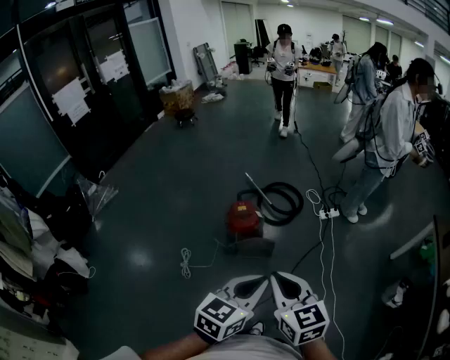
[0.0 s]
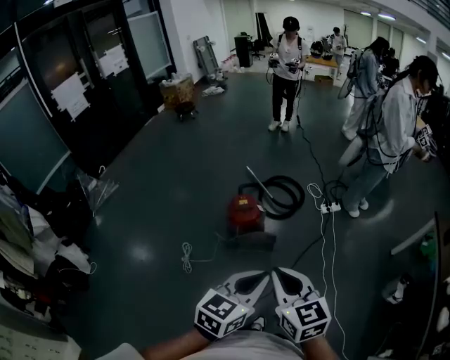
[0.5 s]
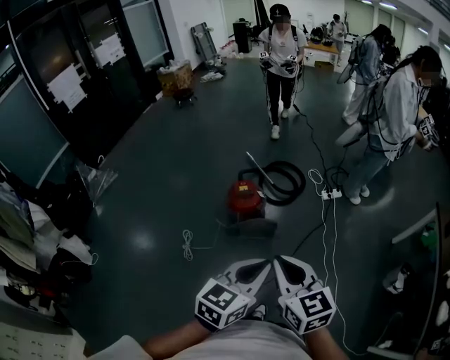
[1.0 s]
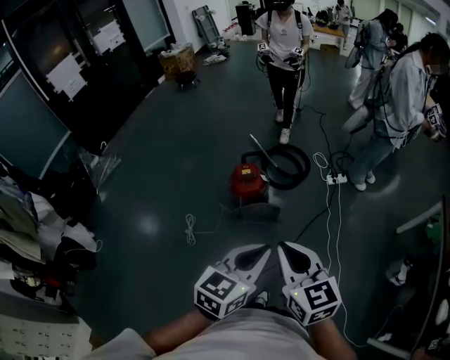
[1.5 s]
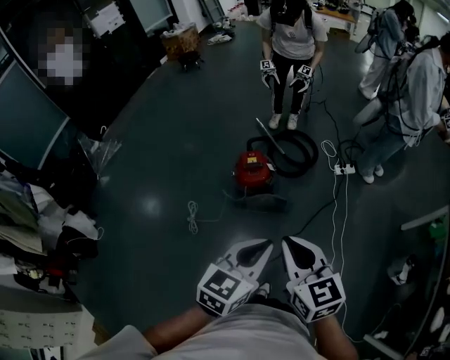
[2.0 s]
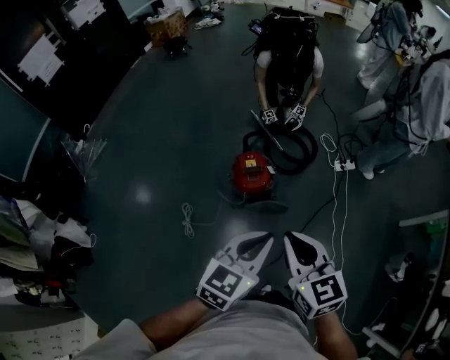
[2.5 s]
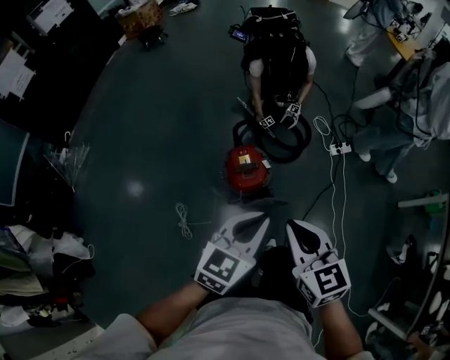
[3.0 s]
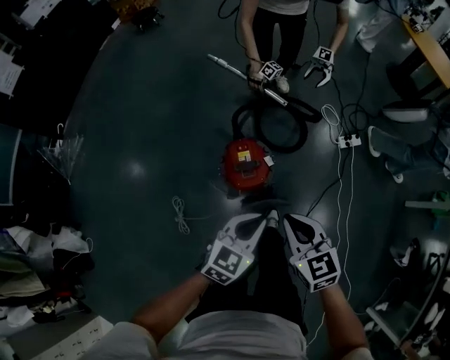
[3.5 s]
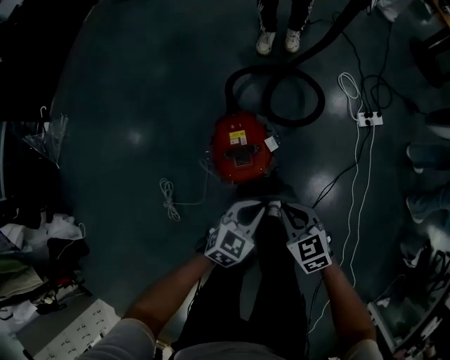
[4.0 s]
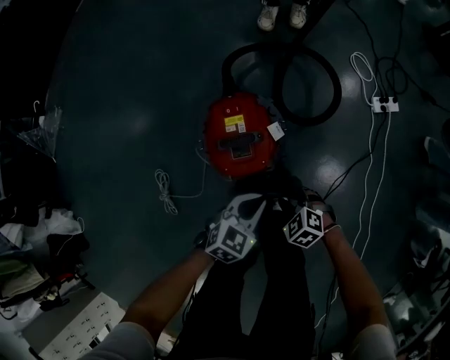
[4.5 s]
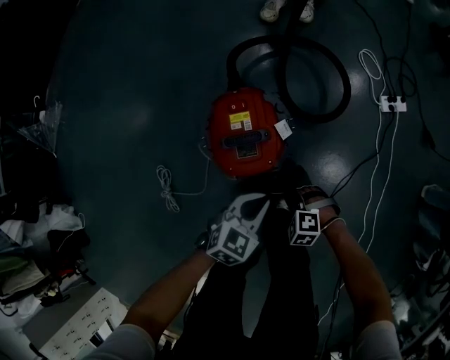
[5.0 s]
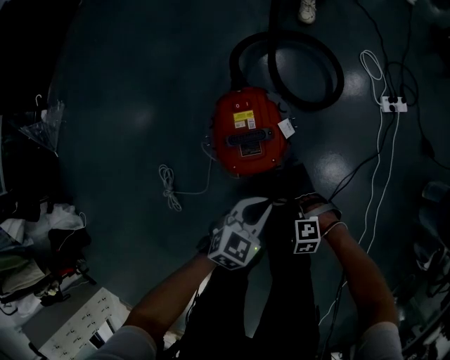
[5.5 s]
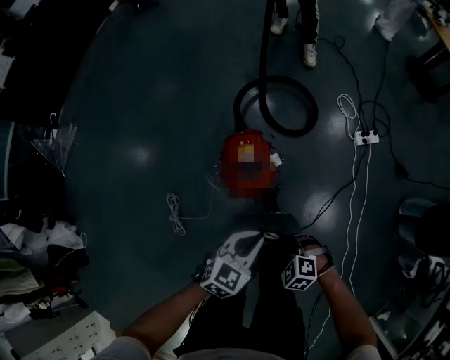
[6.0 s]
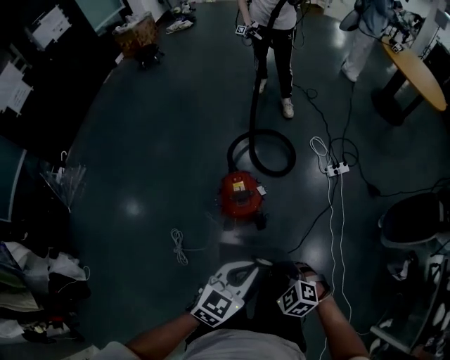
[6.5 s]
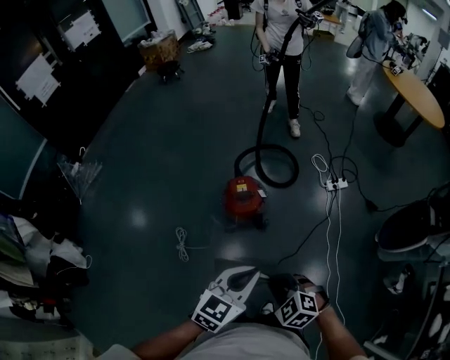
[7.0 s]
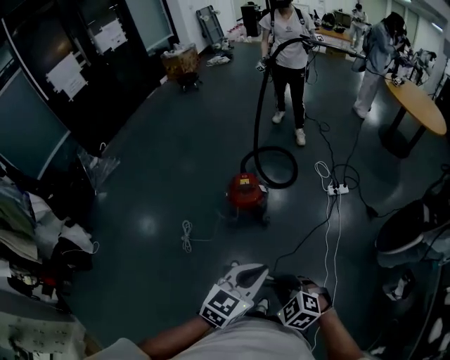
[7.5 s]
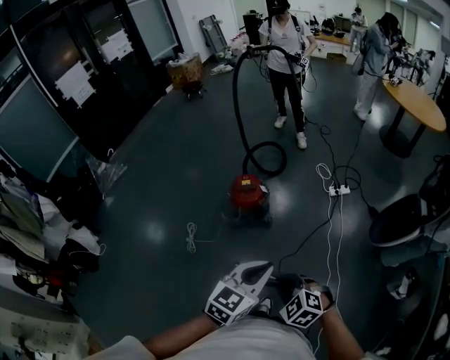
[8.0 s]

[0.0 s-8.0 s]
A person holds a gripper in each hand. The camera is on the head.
0.0 to 2.0 s: Both grippers move forward, roughly 10 cm.
2.0 to 4.0 s: Both grippers travel together downward and forward, approximately 60 cm. The right gripper turns by approximately 30 degrees. Meanwhile the left gripper changes its angle by approximately 30 degrees.
4.0 to 6.0 s: The left gripper goes some 10 cm upward. The right gripper moves some 25 cm downward and comes back, and changes its angle by about 40 degrees.
6.0 to 8.0 s: The left gripper is displaced backward and upward by some 60 cm, and rotates some 20 degrees. The right gripper shifts about 50 cm upward and backward.

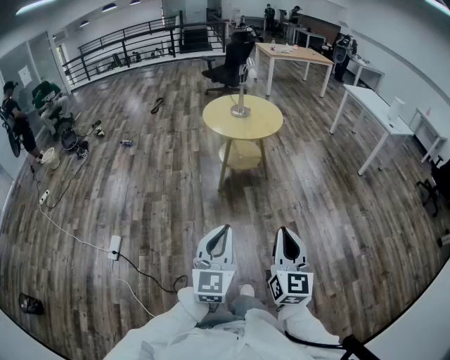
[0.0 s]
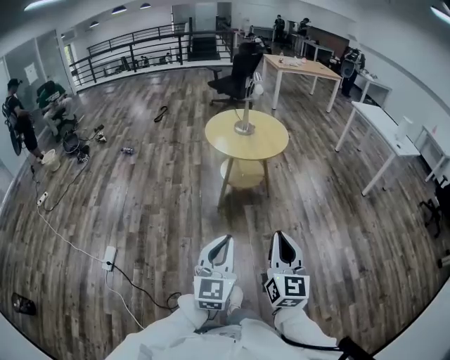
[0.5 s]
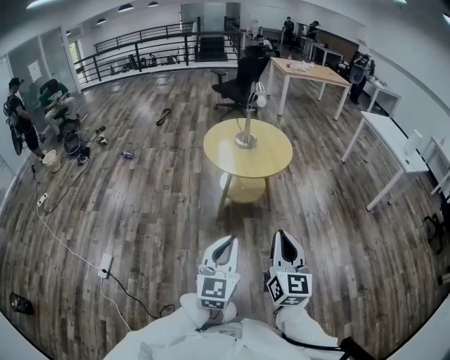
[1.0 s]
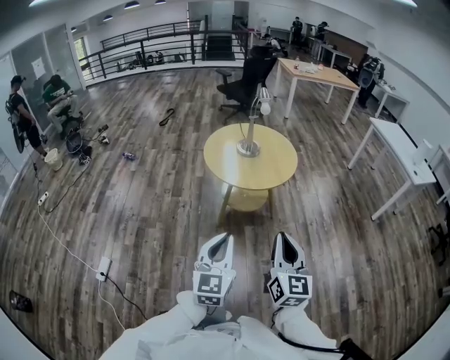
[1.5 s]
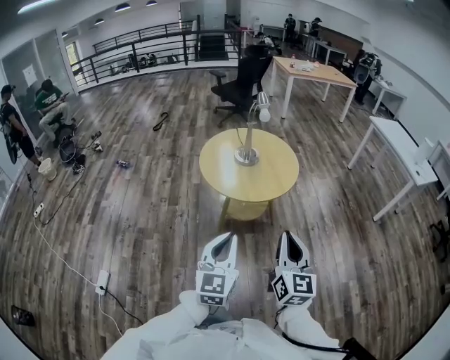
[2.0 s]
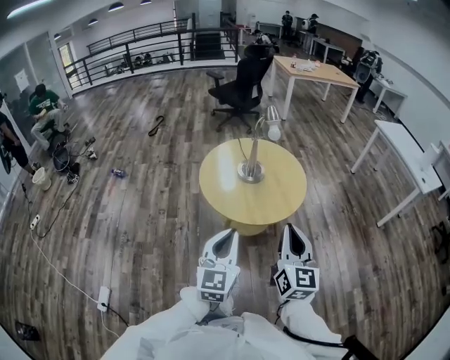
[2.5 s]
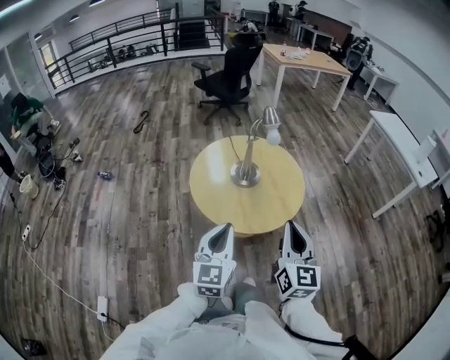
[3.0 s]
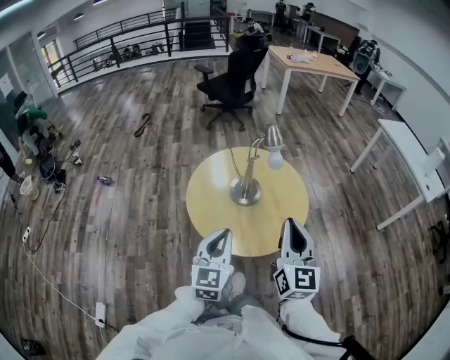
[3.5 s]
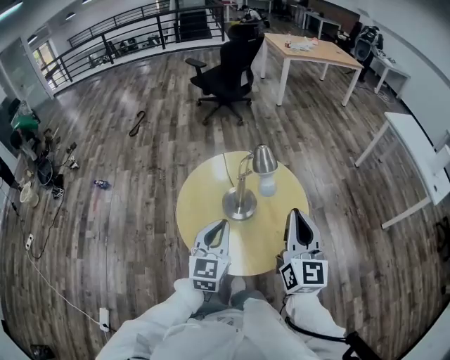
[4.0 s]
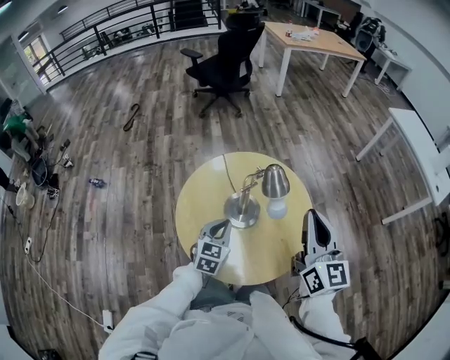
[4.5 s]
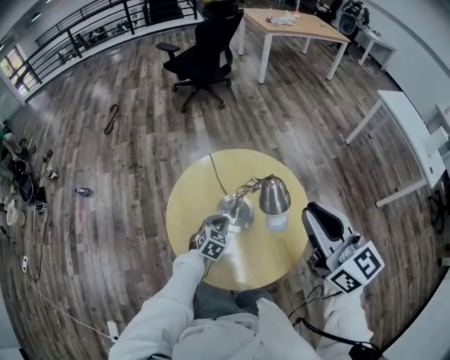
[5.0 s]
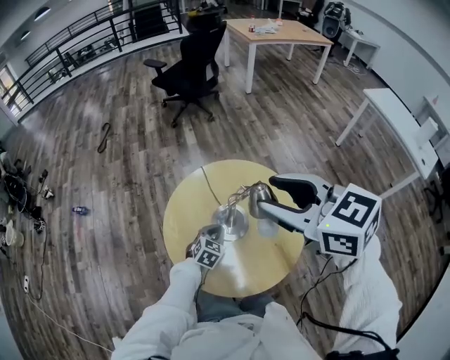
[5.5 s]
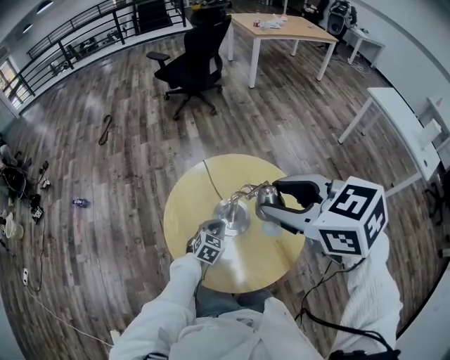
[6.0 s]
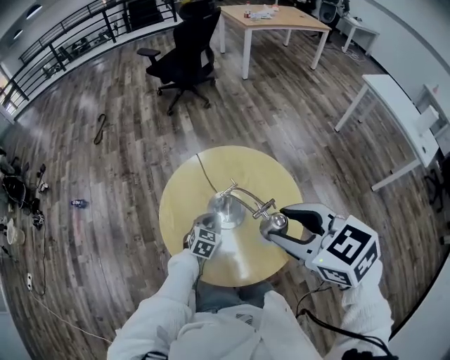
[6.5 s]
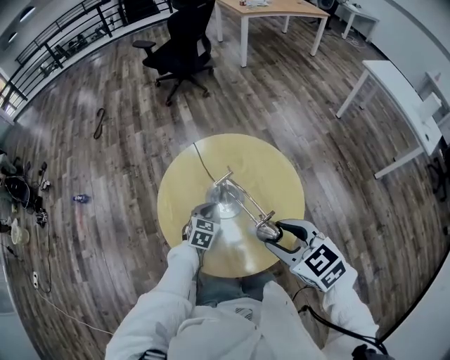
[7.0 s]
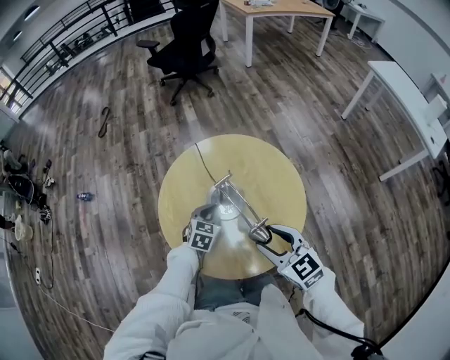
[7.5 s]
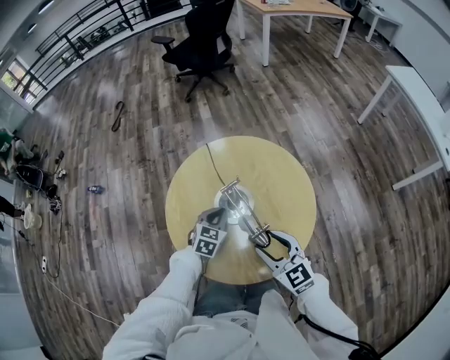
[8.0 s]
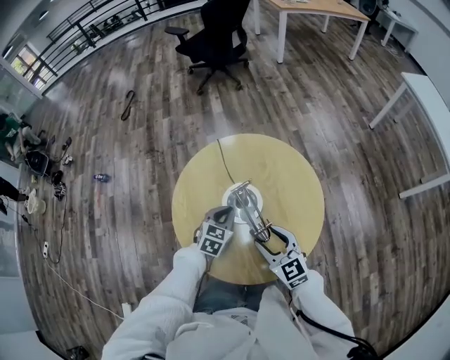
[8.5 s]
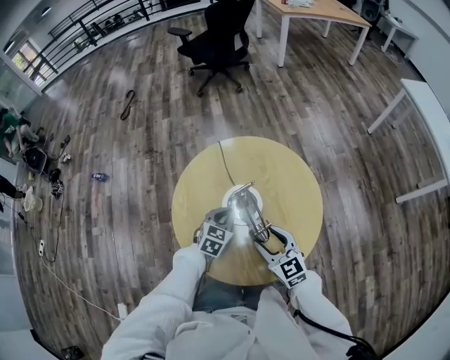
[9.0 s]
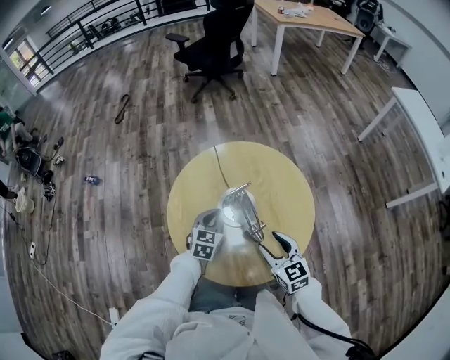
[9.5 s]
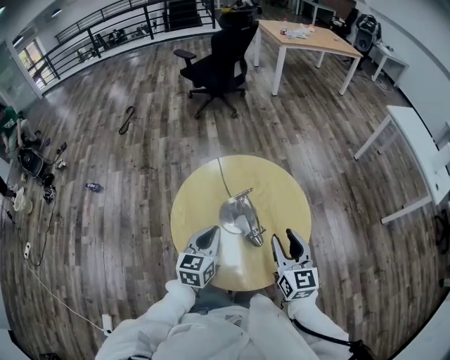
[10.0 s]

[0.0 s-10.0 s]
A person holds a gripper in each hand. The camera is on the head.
0.0 to 2.0 s: The pair of grippers is taken forward, about 50 cm.
2.0 to 4.0 s: The pair of grippers is taken forward, roughly 50 cm.
4.0 to 6.0 s: The left gripper moves downward and forward, roughly 30 cm, and points its fingers about 30 degrees further downward, while the right gripper moves forward, to the left and upward, about 15 cm, points its fingers roughly 40 degrees further downward, and opens its fingers.
6.0 to 8.0 s: The right gripper travels downward by approximately 30 cm.
8.0 to 10.0 s: The right gripper goes about 10 cm upward and to the right, and turns by some 30 degrees. Meanwhile the left gripper is displaced upward and backward by about 15 cm, and swivels roughly 30 degrees.

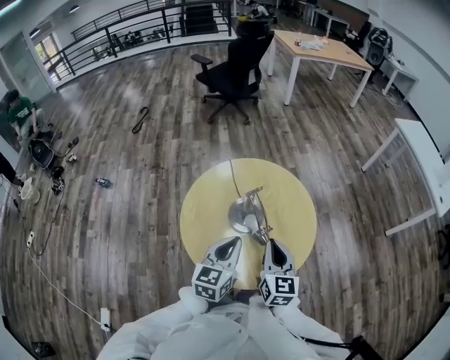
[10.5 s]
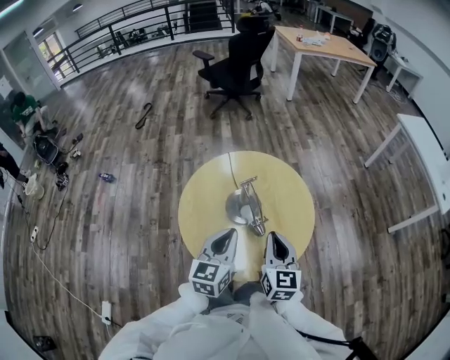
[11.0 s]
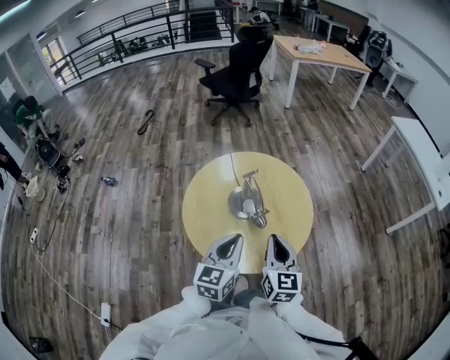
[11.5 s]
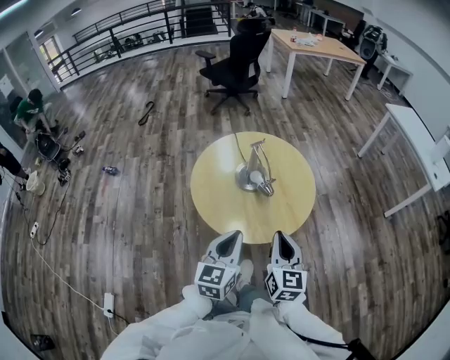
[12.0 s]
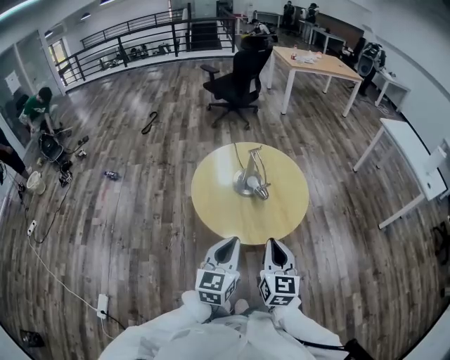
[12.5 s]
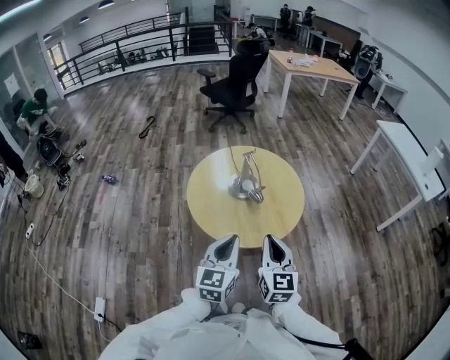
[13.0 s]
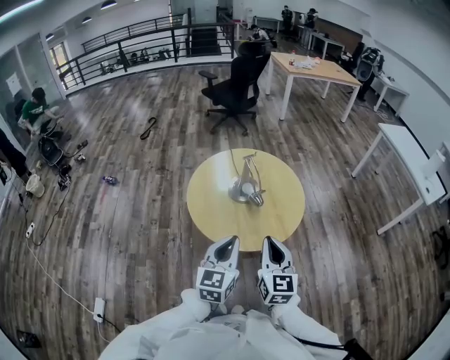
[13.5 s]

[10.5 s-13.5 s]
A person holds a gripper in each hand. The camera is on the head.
10.5 to 12.0 s: Both grippers travel together backward, approximately 20 cm.
12.0 to 13.5 s: The grippers make only small movements.

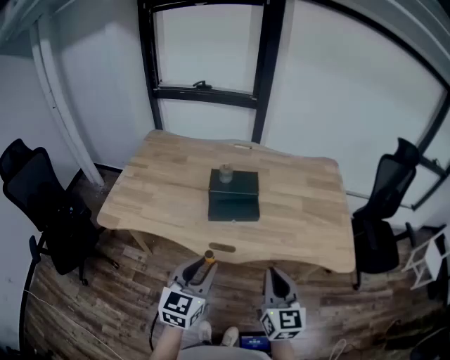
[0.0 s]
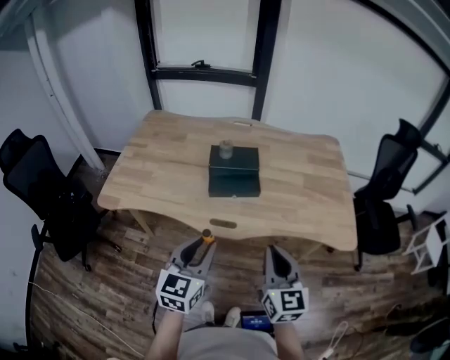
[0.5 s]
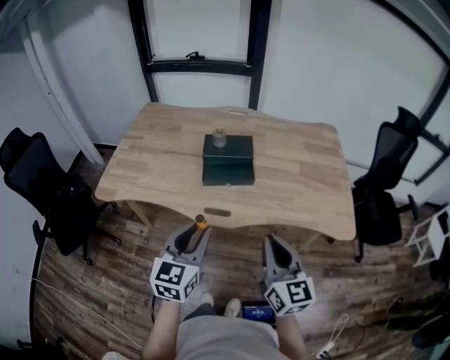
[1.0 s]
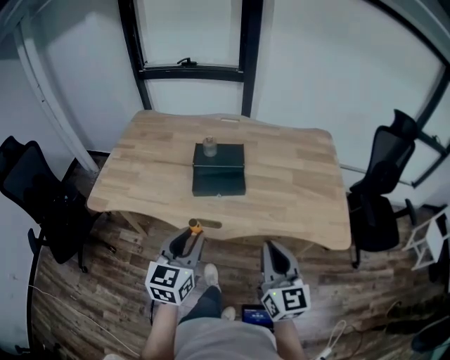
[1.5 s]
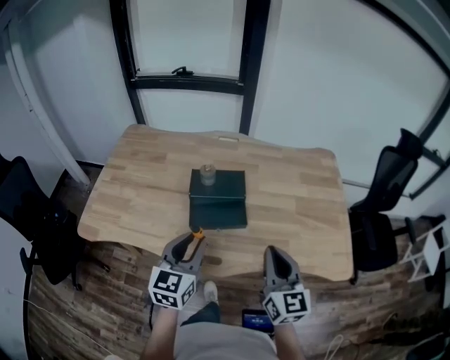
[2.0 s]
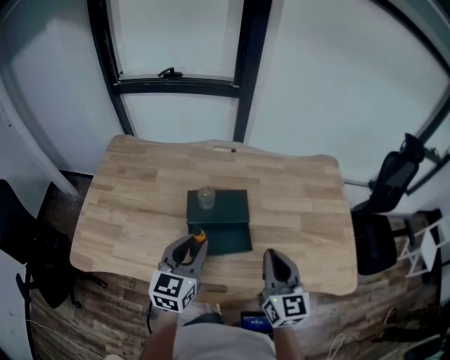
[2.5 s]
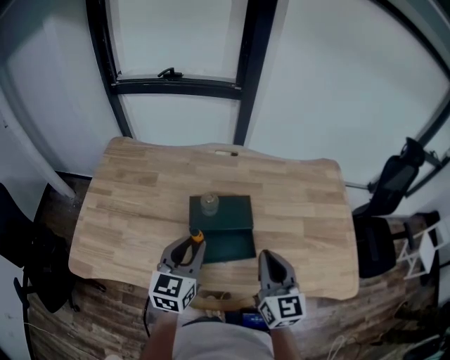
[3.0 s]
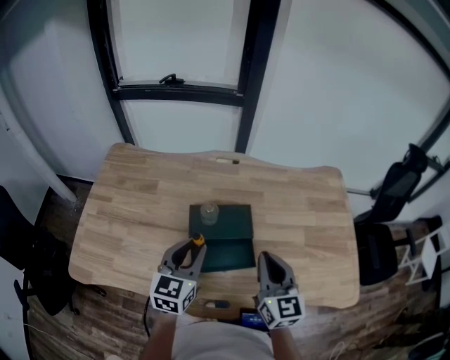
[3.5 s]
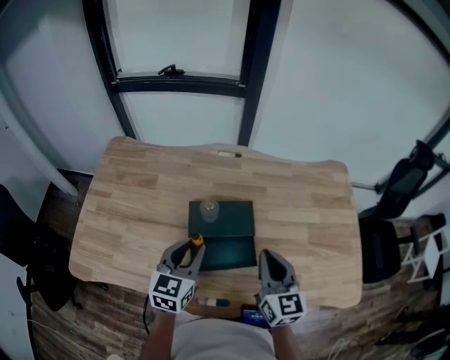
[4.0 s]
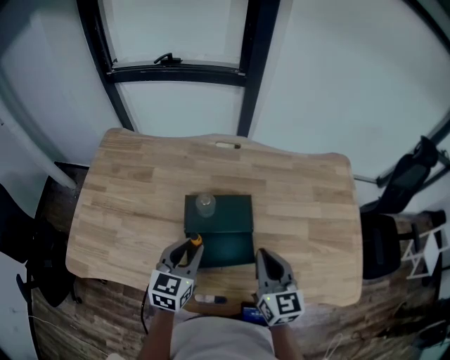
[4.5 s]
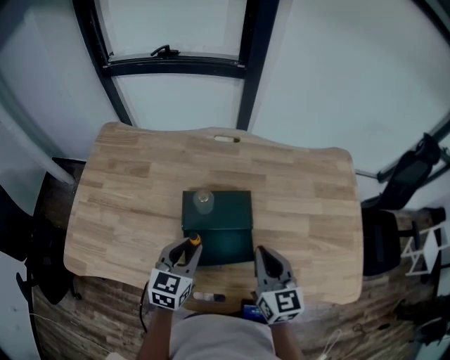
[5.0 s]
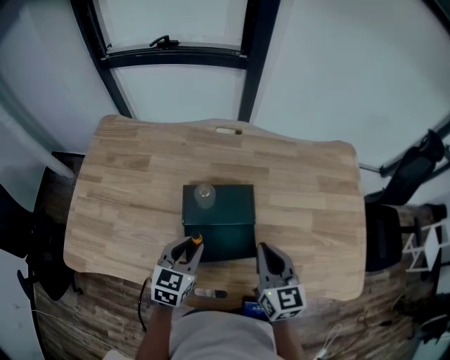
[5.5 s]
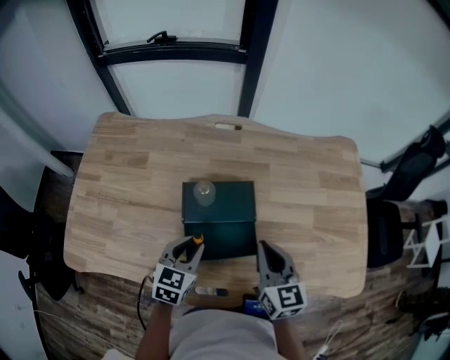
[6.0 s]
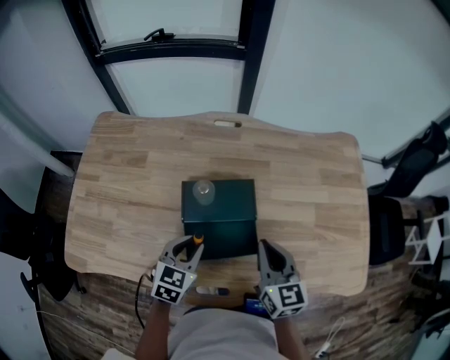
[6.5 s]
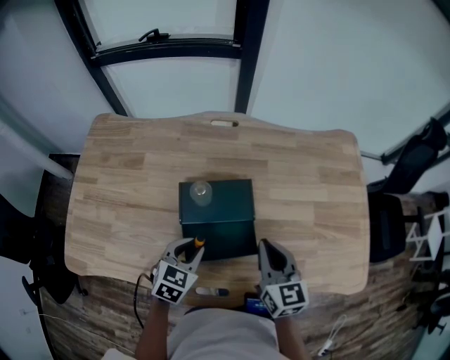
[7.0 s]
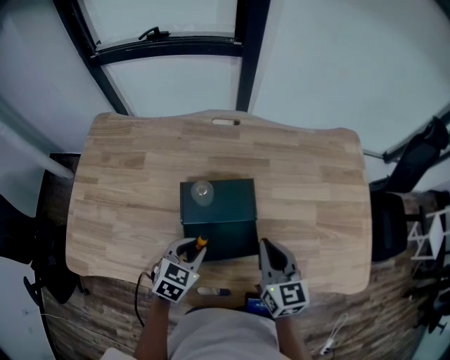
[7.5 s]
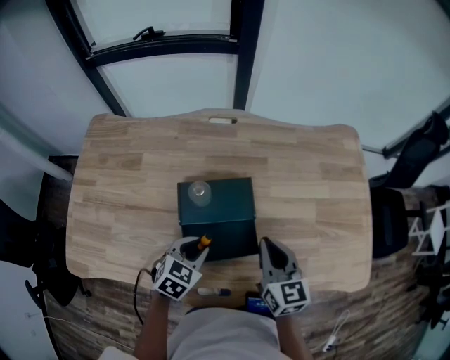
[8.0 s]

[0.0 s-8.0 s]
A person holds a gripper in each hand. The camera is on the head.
0.0 to 2.0 s: Both grippers move forward, roughly 15 cm.
2.0 to 4.0 s: The grippers both shift forward by roughly 15 cm.
4.0 to 6.0 s: The left gripper heads downward, covering about 10 cm.
6.0 to 8.0 s: The left gripper changes its angle by approximately 20 degrees.
